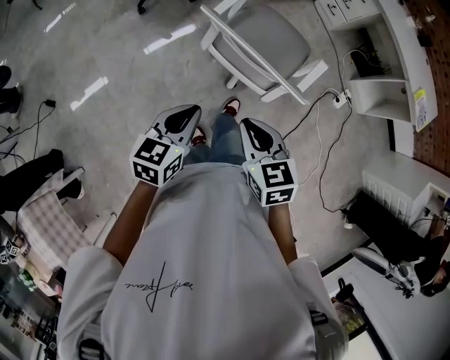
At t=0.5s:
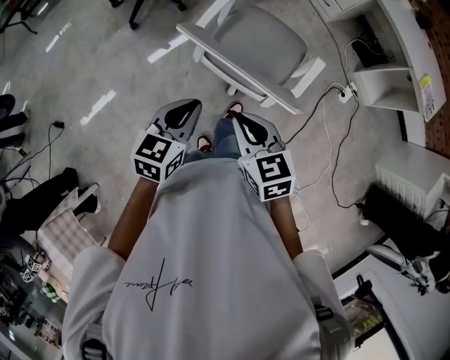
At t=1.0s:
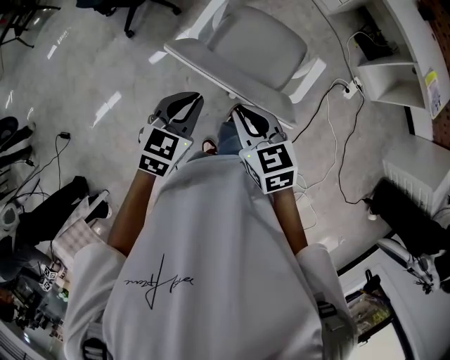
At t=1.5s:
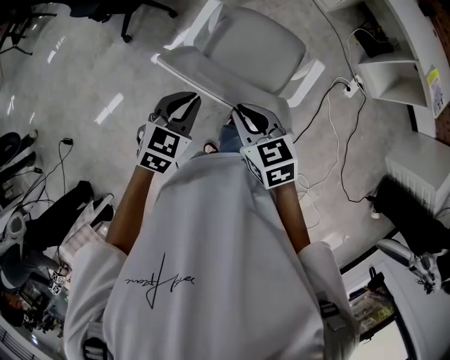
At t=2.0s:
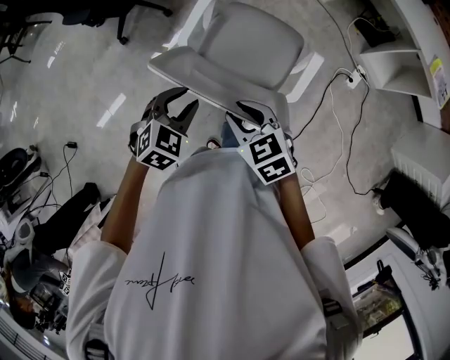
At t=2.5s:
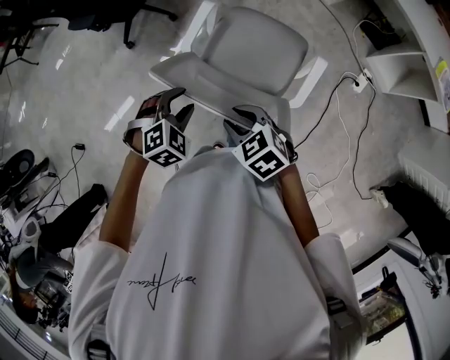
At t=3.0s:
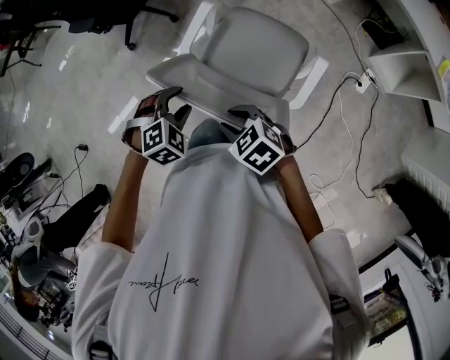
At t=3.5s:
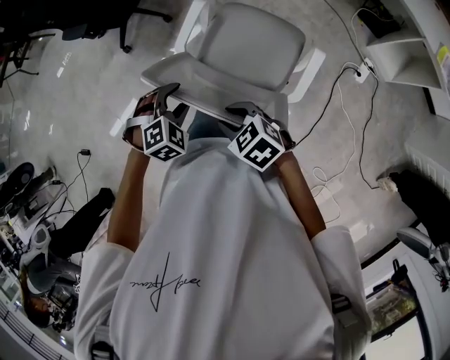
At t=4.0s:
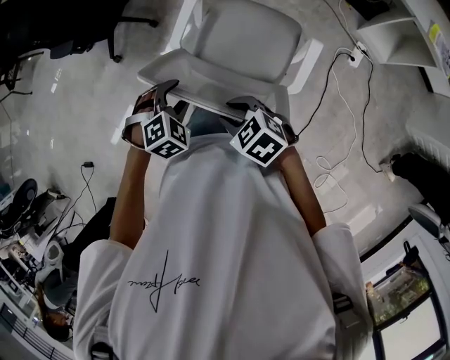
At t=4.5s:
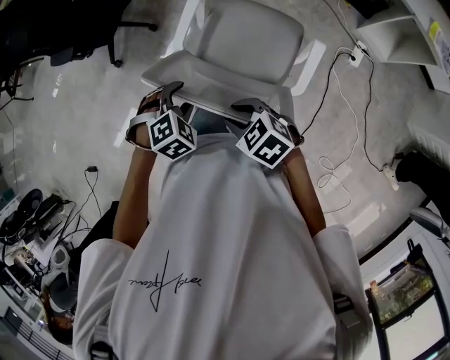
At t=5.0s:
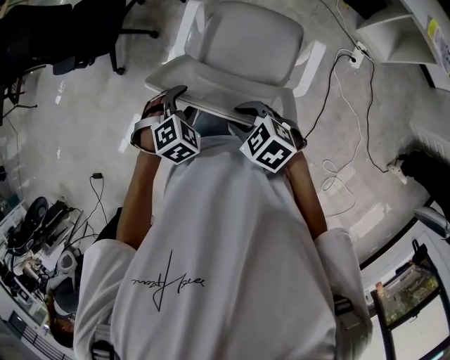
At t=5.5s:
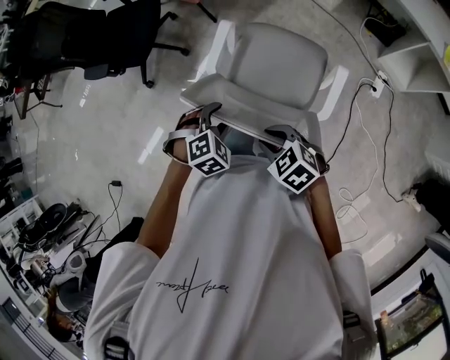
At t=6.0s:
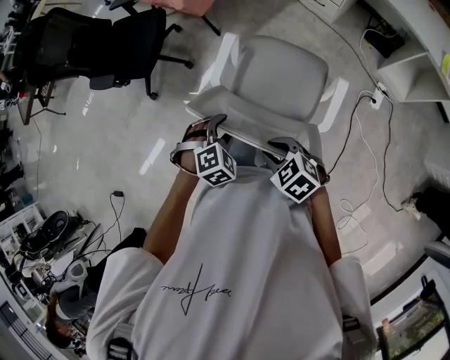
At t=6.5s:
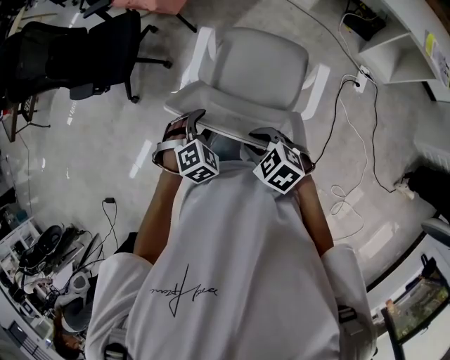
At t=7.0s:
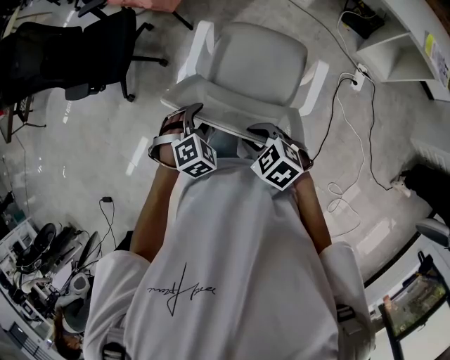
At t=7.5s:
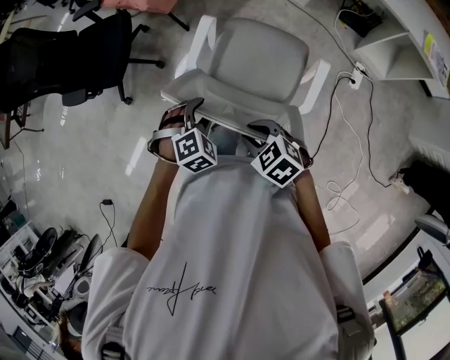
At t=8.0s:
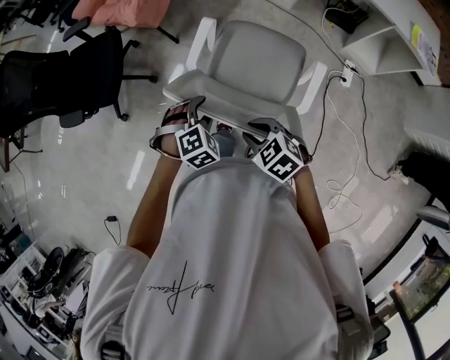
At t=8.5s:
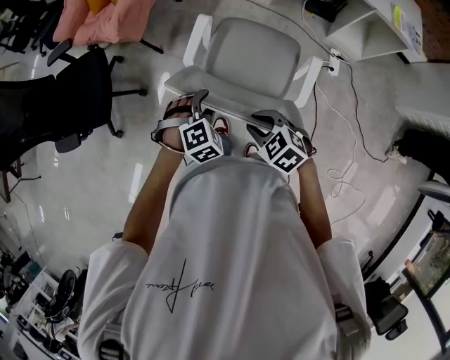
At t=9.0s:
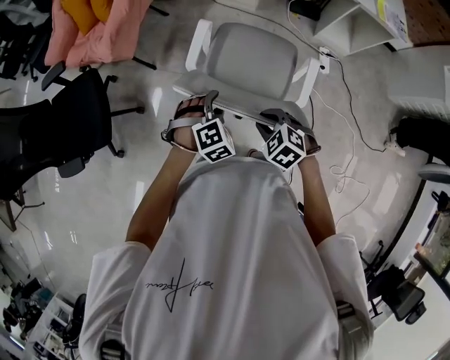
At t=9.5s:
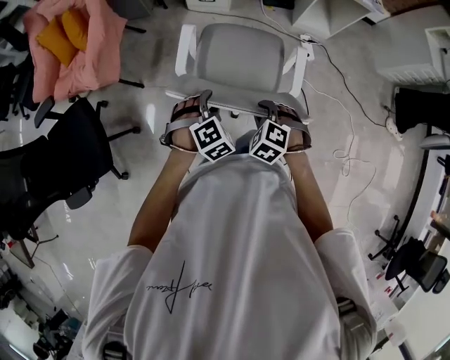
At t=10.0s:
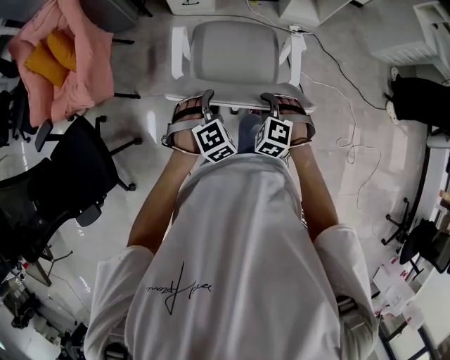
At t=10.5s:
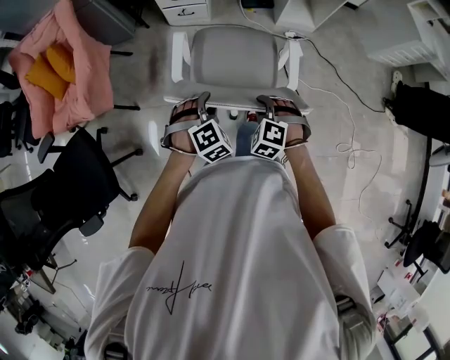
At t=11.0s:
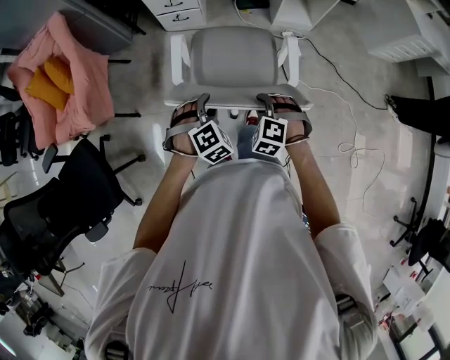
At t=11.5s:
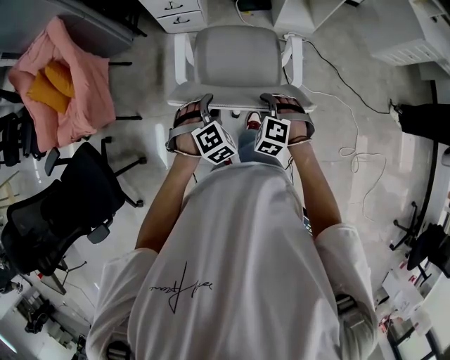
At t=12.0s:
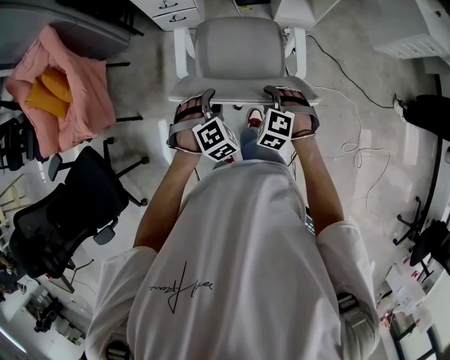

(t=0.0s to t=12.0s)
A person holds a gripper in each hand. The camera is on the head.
t=0.0s - t=2.0s: Both grippers travel together forward, about 20 cm. The left gripper twists some 40 degrees clockwise, seen from behind, and opens. Meanwhile the right gripper opens its fingers.
t=2.0s - t=4.0s: The left gripper goes approximately 5 cm downward and forward, changes its angle by about 30 degrees, and opens up; the right gripper shifts by approximately 5 cm.
t=4.0s - t=6.0s: The two grippers go approximately 5 cm forward.
t=6.0s - t=8.0s: The grippers both shift forward and to the right by some 10 cm.
t=8.0s - t=10.0s: The right gripper shifts by roughly 15 cm, and changes its angle by about 50 degrees; the left gripper moves some 15 cm, and turns by some 30 degrees.
t=10.0s - t=12.0s: The two grippers go about 15 cm forward and to the right.

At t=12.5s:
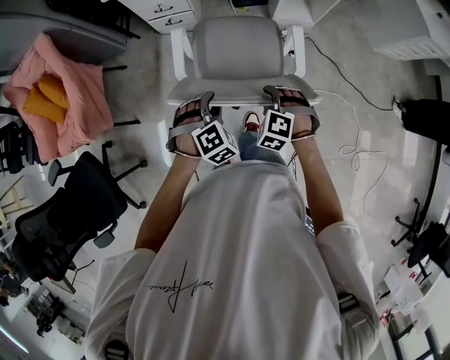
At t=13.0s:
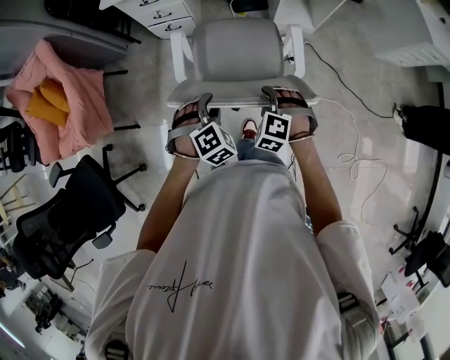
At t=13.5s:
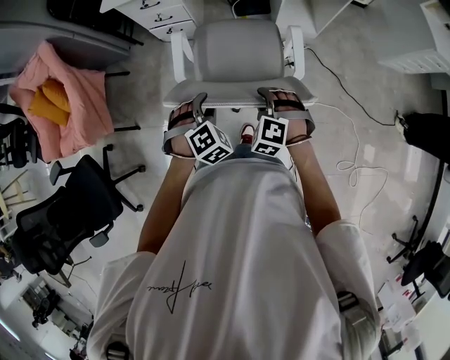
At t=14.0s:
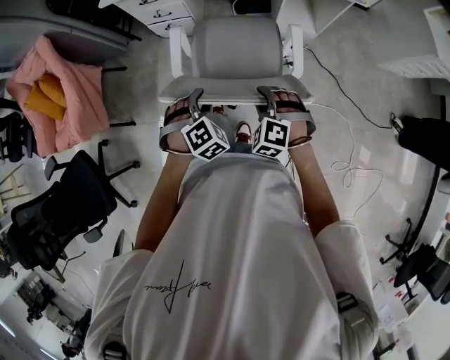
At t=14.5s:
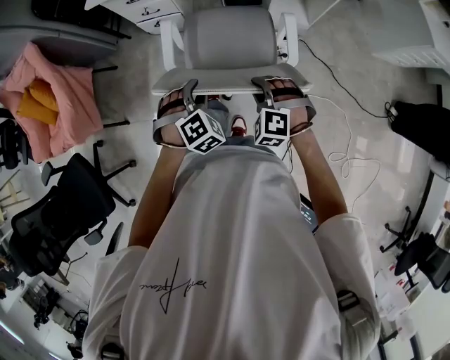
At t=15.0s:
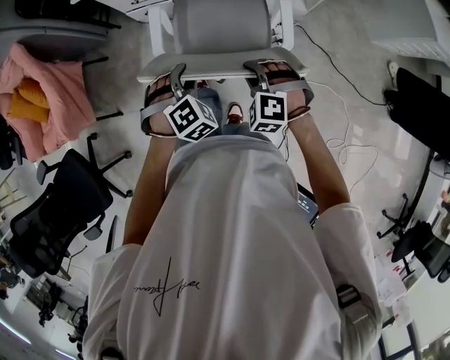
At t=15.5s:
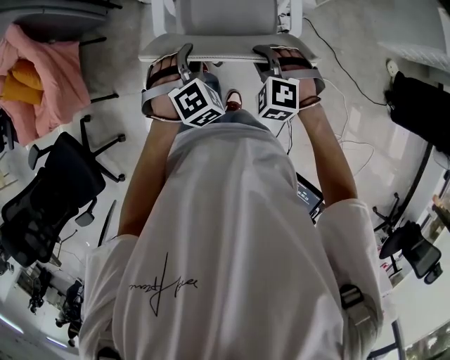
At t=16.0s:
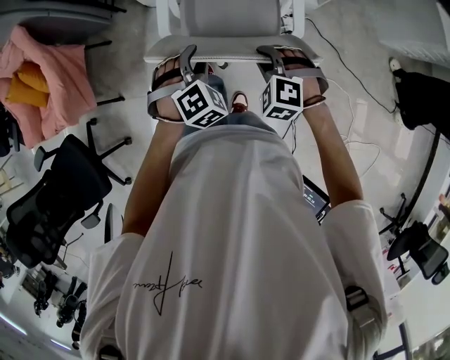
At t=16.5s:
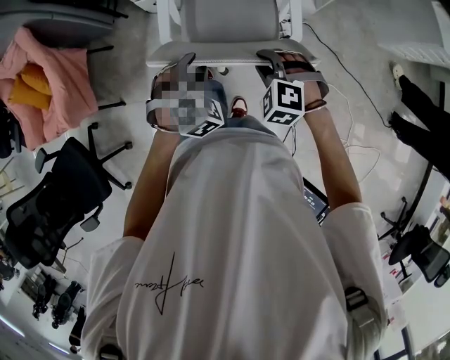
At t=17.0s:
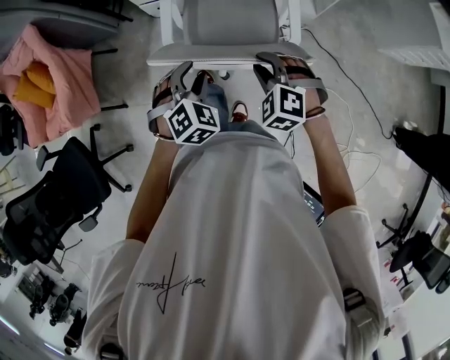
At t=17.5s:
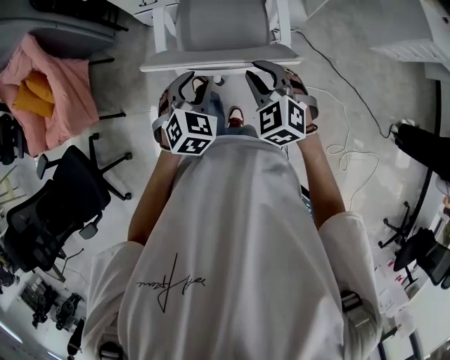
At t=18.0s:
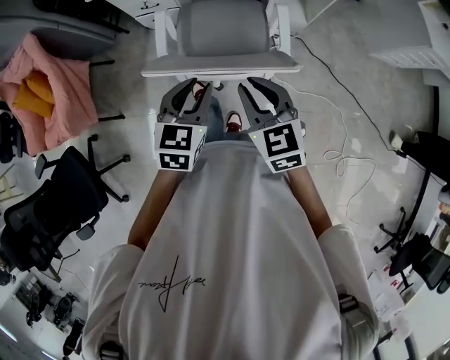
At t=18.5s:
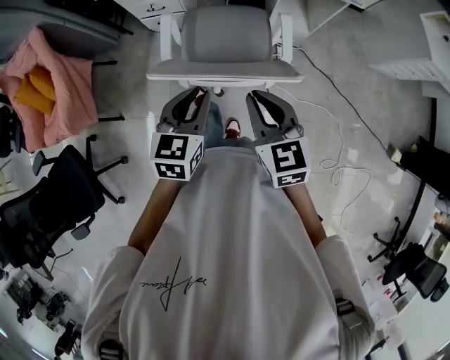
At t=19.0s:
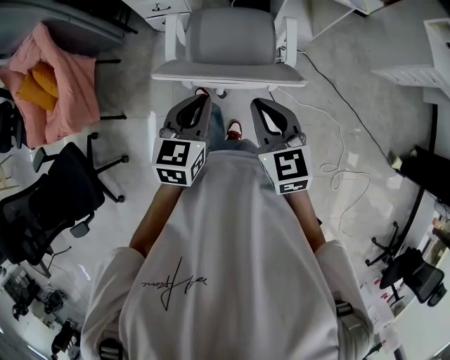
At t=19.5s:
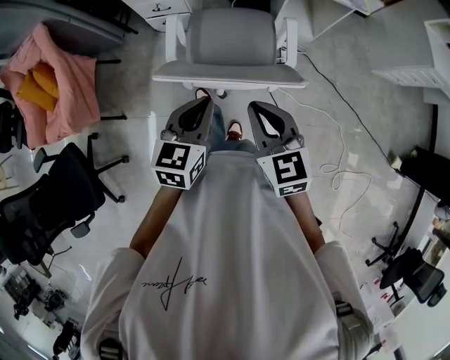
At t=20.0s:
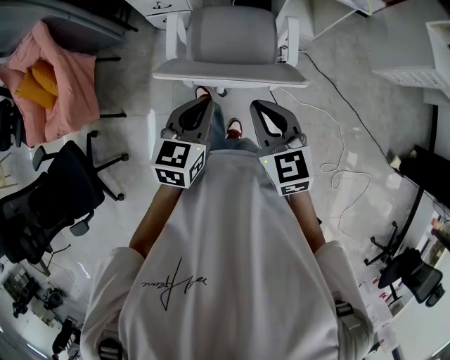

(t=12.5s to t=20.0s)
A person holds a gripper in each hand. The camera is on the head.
t=12.5s - t=14.5s: The two grippers go approximately 10 cm forward and to the right.
t=14.5s - t=16.5s: There are only small adjustments of the grippers.
t=16.5s - t=18.0s: The left gripper moves upward, approximately 10 cm, and twists about 40 degrees counterclockwise, seen from behind, while the right gripper travels upward by approximately 15 cm, and rotates around the line of its fingers by approximately 50 degrees, clockwise from behind.
t=18.0s - t=20.0s: The left gripper closes.

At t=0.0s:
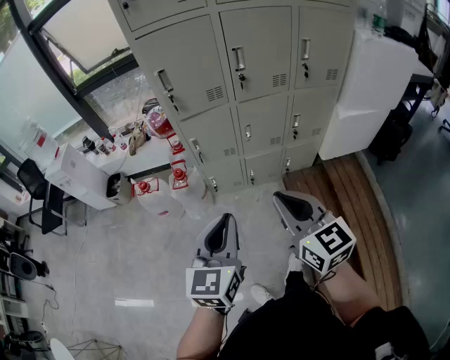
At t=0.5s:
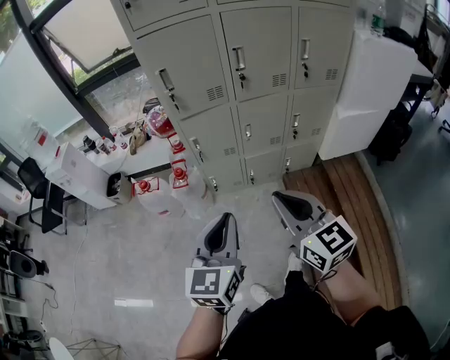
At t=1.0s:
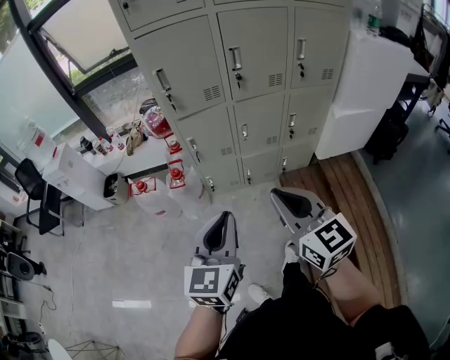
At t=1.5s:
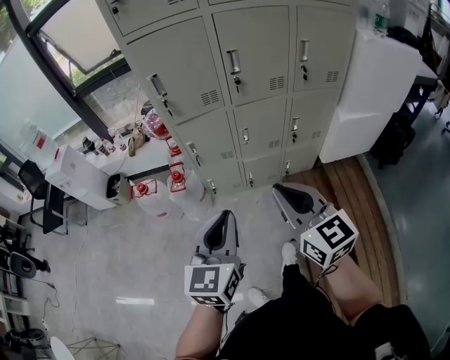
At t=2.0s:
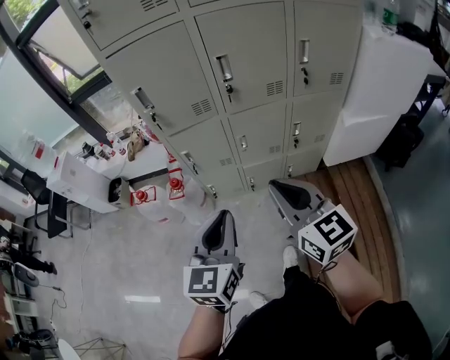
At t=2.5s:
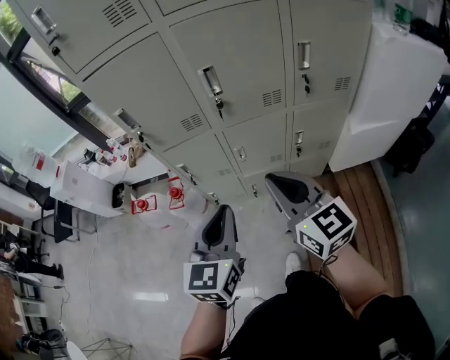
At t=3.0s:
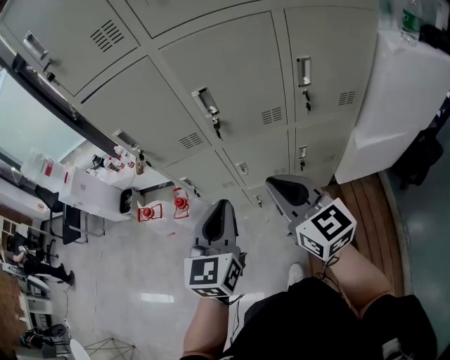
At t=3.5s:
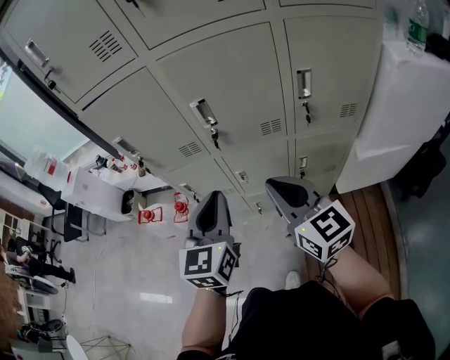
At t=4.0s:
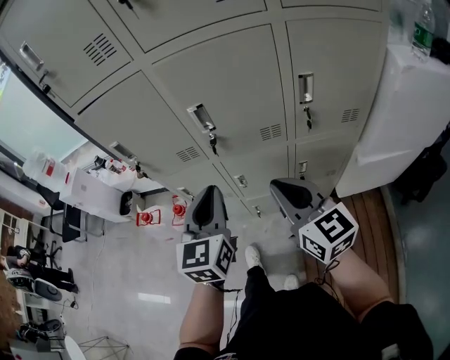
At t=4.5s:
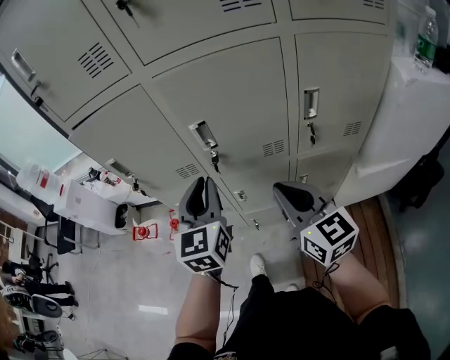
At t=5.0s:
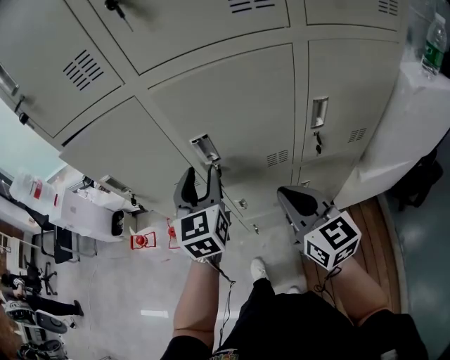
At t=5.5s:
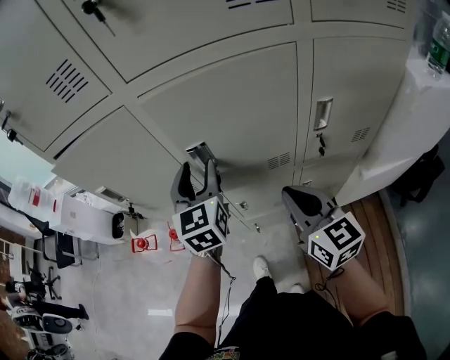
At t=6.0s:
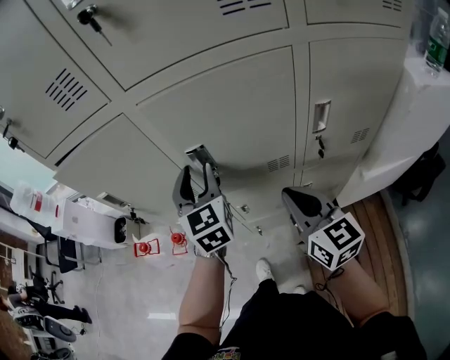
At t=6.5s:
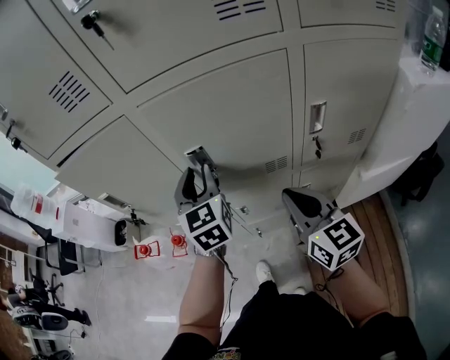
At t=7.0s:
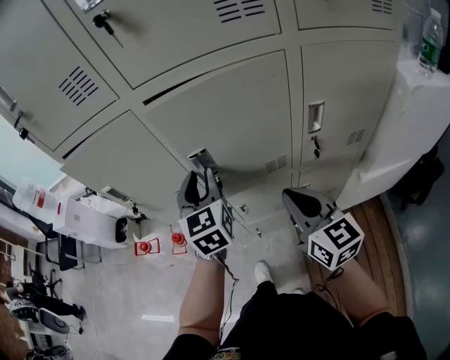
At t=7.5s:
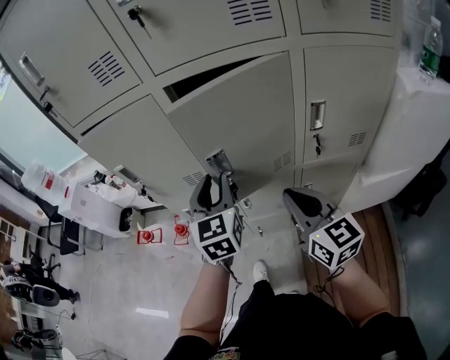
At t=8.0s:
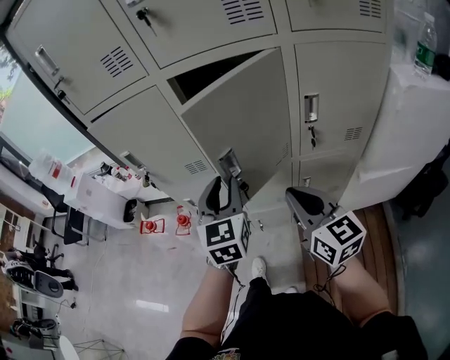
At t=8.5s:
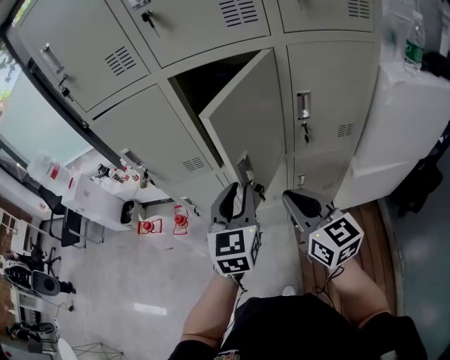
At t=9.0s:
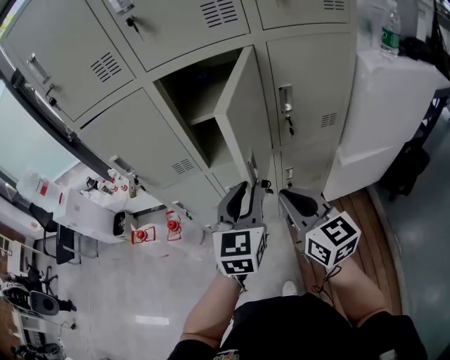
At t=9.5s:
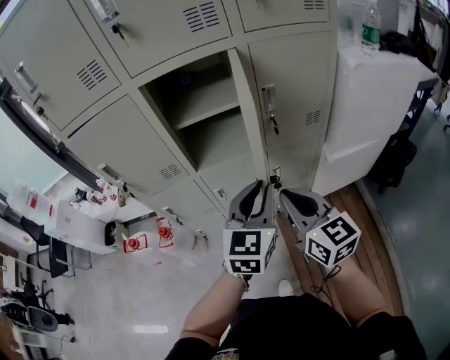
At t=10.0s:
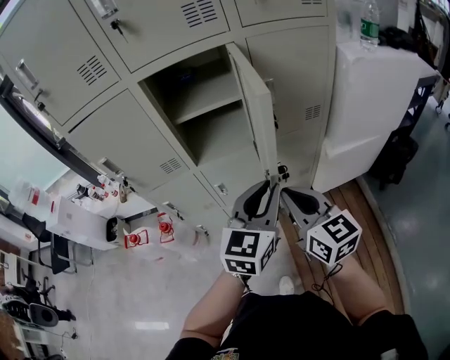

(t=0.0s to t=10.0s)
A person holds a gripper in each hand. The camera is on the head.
t=0.0s - t=2.0s: The grippers both shift forward and to the right by some 15 cm.
t=2.0s - t=4.0s: Both grippers travel together forward and to the right, some 25 cm.
t=4.0s - t=6.0s: The right gripper travels forward by about 10 cm. The left gripper heads forward, covering about 20 cm, and opens up.
t=6.0s - t=8.0s: The right gripper travels backward by some 10 cm; the left gripper heads backward, covering roughly 15 cm.
t=8.0s - t=10.0s: The left gripper is displaced to the right and backward by approximately 20 cm, and swivels roughly 40 degrees. Meanwhile the right gripper goes about 10 cm backward.
